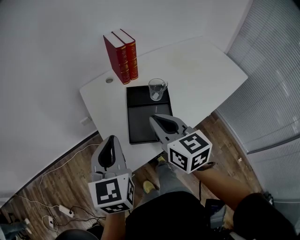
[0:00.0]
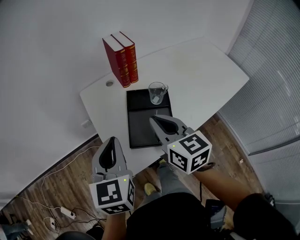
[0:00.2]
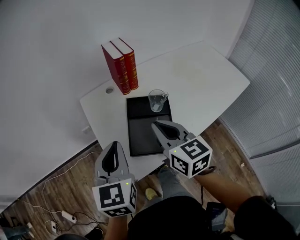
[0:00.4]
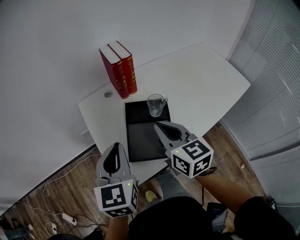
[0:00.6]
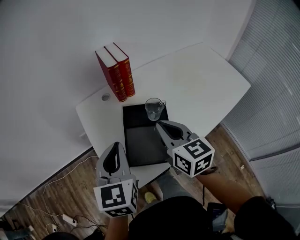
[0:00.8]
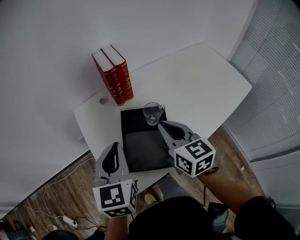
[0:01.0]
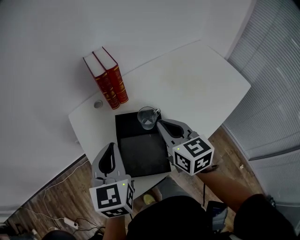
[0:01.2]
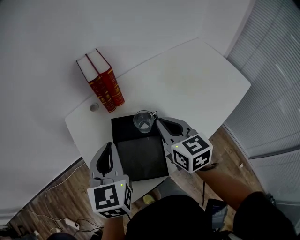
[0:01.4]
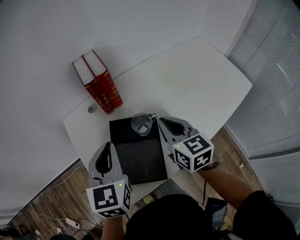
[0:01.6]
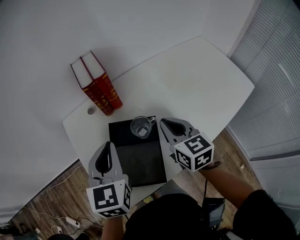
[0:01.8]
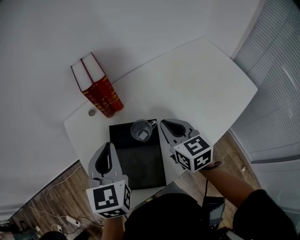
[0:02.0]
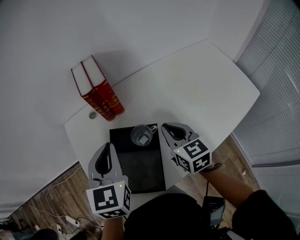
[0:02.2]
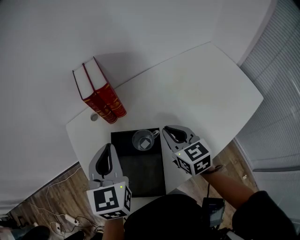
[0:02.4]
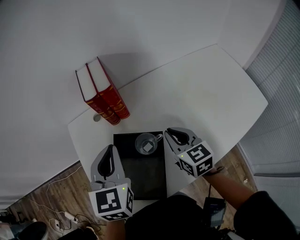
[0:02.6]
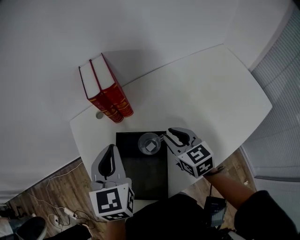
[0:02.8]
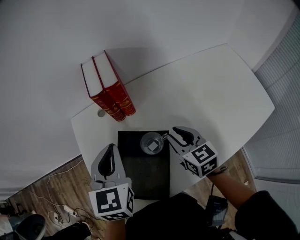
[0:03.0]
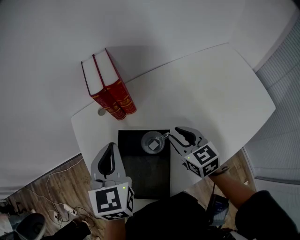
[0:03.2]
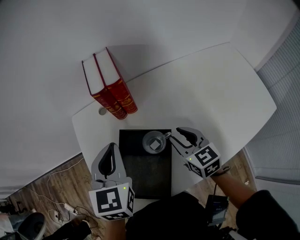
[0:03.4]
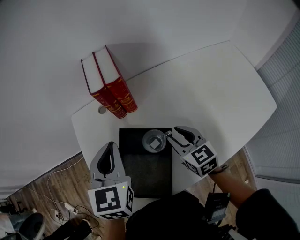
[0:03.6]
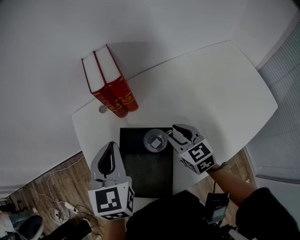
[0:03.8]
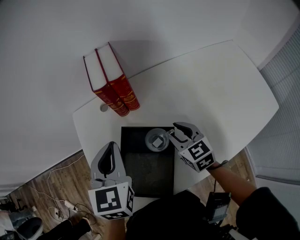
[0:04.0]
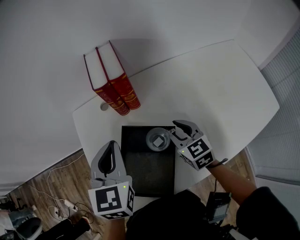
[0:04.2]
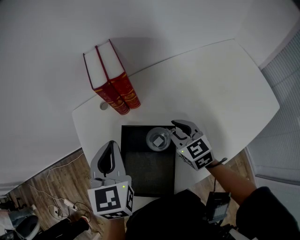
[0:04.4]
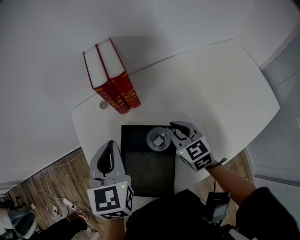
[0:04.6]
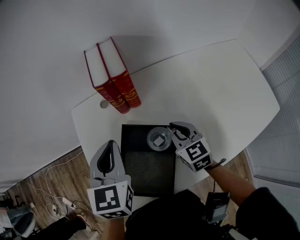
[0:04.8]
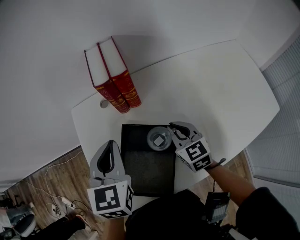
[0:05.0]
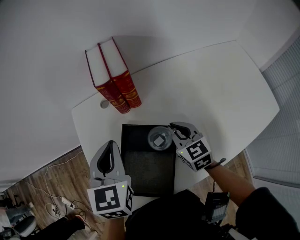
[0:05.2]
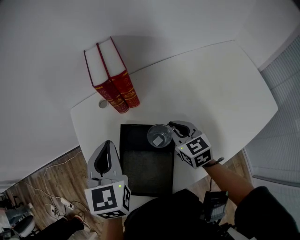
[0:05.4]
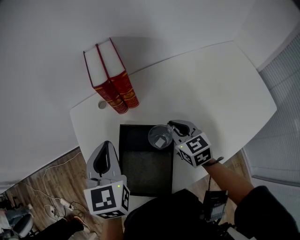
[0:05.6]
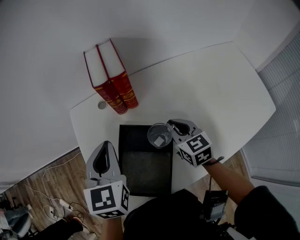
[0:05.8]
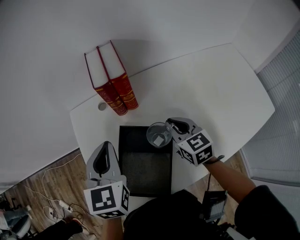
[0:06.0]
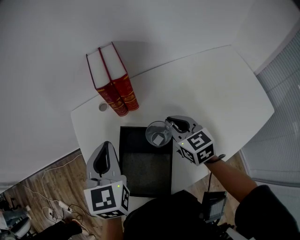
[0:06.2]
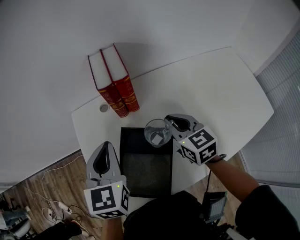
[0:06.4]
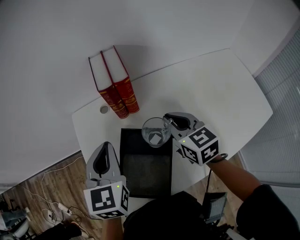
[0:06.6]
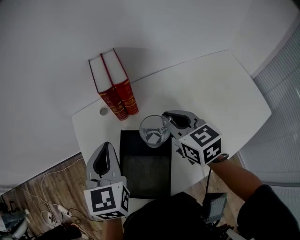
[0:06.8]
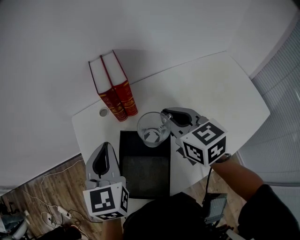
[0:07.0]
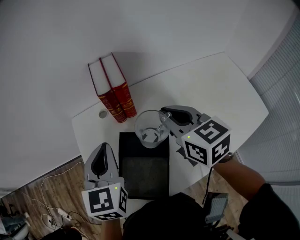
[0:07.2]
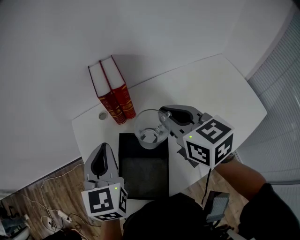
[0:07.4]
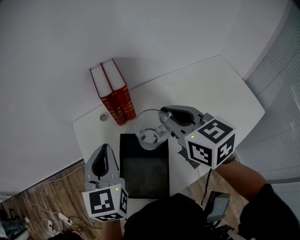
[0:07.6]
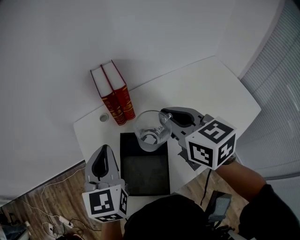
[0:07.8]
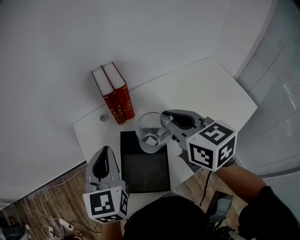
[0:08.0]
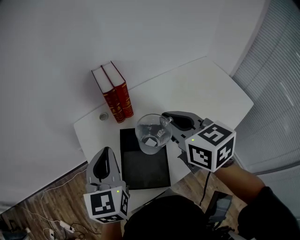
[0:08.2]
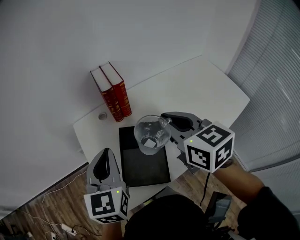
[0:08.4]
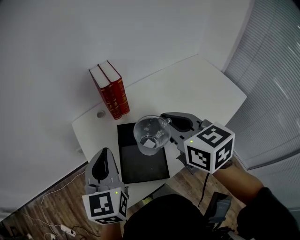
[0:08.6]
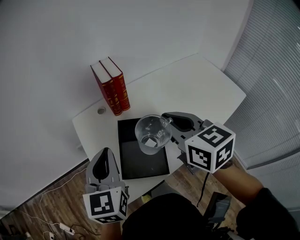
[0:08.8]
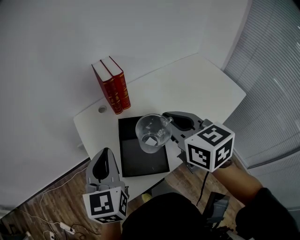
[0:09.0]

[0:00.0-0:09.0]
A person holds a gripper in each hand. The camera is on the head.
0:00.0 to 0:01.6: The left gripper moves forward and to the right, about 20 cm; the right gripper heads to the right and forward, covering approximately 20 cm.
0:01.6 to 0:03.0: The right gripper travels downward and forward by about 10 cm, and opens its fingers. Meanwhile the left gripper travels forward by approximately 5 cm.
0:03.0 to 0:04.4: The grippers make only small movements.
0:04.4 to 0:06.0: The right gripper closes up.
0:06.0 to 0:07.6: The left gripper travels upward by some 5 cm, while the right gripper travels upward by roughly 20 cm.
0:07.6 to 0:09.0: The grippers both shift backward by roughly 15 cm.

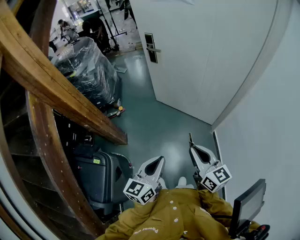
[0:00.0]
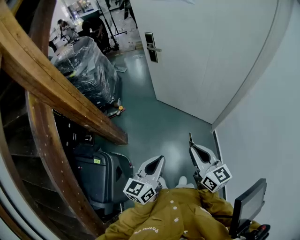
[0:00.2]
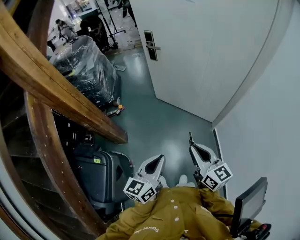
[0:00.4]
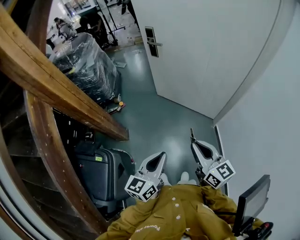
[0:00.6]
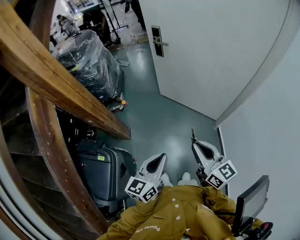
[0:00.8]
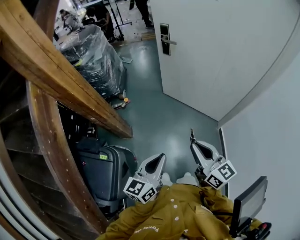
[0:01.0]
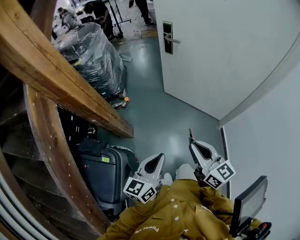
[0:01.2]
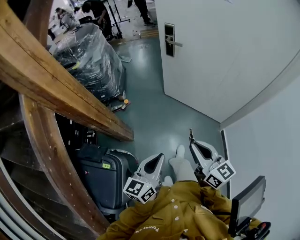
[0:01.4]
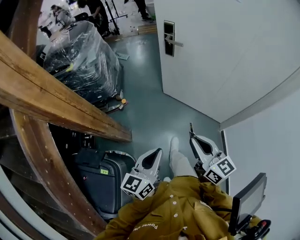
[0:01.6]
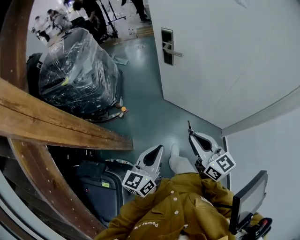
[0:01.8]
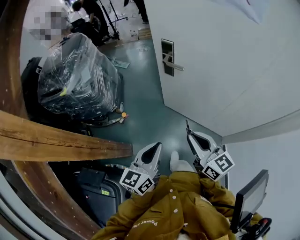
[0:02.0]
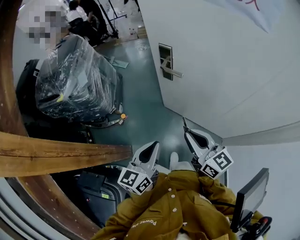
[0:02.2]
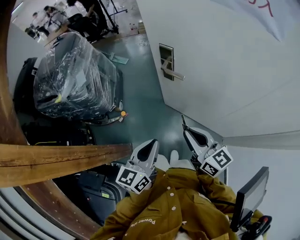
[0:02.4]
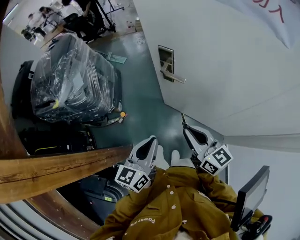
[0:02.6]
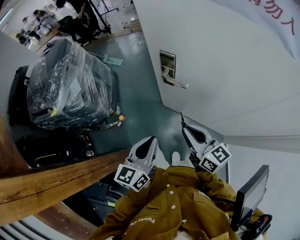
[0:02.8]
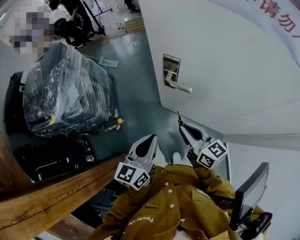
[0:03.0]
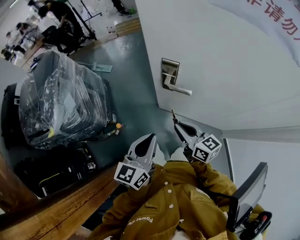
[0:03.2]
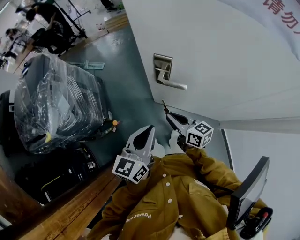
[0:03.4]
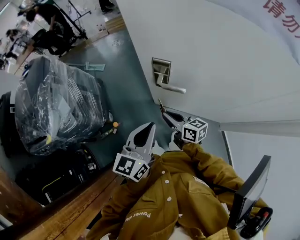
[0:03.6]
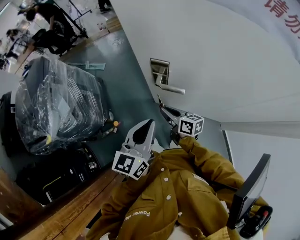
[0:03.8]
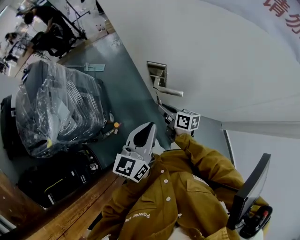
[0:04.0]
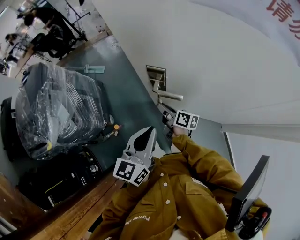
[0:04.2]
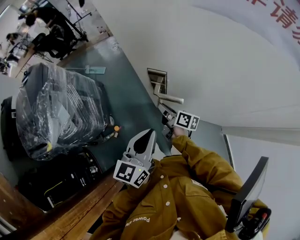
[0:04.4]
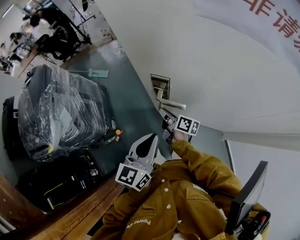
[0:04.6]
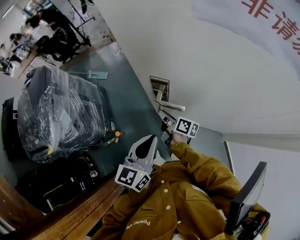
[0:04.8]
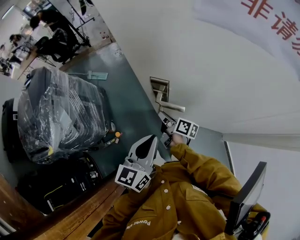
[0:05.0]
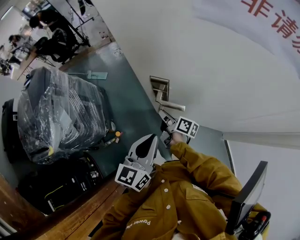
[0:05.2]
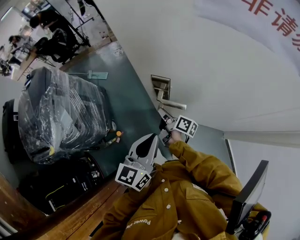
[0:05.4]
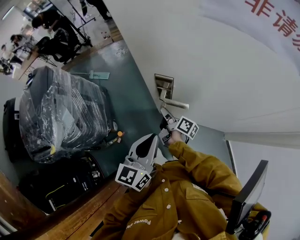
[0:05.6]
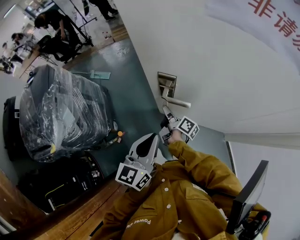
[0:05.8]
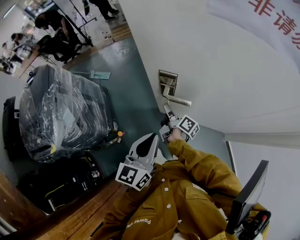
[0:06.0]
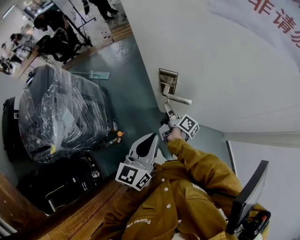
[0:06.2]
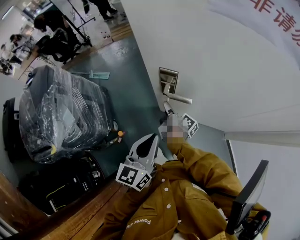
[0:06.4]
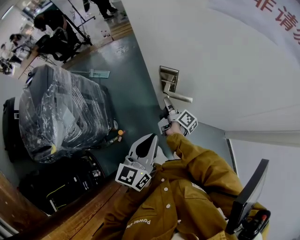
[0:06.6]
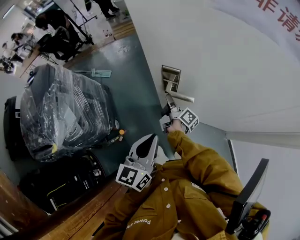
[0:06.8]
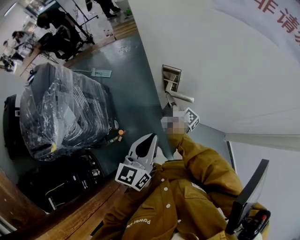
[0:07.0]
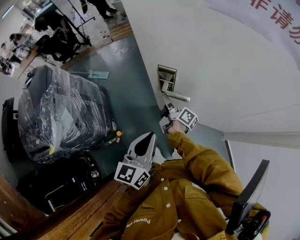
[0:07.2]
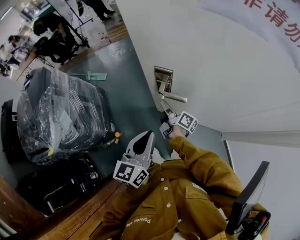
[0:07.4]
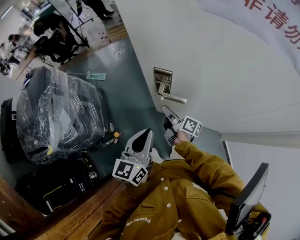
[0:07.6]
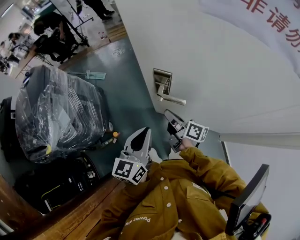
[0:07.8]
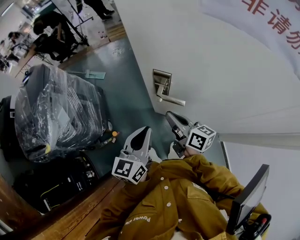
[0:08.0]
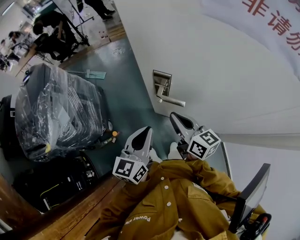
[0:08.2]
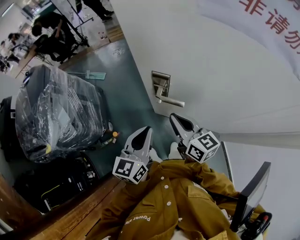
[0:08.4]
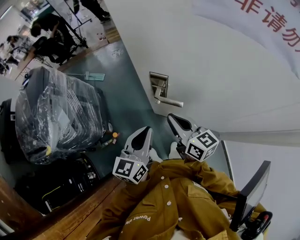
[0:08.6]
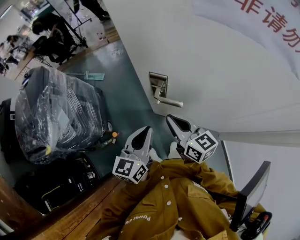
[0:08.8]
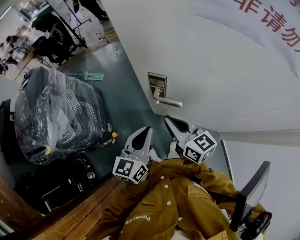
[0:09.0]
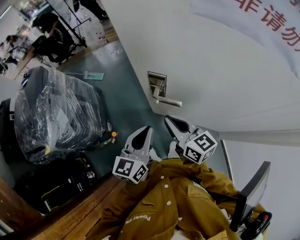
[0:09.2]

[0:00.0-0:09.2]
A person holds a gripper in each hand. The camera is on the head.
0:00.0 to 0:01.6: The two grippers go roughly 20 cm forward and to the left.
0:01.6 to 0:03.0: The pair of grippers is taken forward, some 40 cm.
0:03.0 to 0:04.6: The left gripper travels forward and to the right by about 15 cm. The right gripper travels forward and downward by approximately 25 cm, and twists about 40 degrees clockwise, seen from behind.
0:04.6 to 0:06.2: The right gripper rotates approximately 20 degrees.
0:06.2 to 0:07.6: The grippers stay close to where they were, moving slightly.
0:07.6 to 0:09.2: The right gripper travels upward and backward by roughly 15 cm, rotates around the line of its fingers by about 50 degrees, counterclockwise from behind, and closes up.

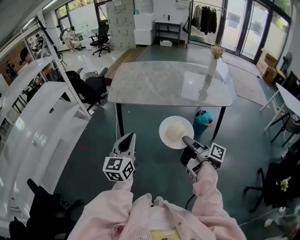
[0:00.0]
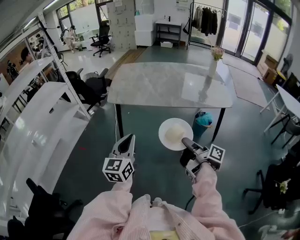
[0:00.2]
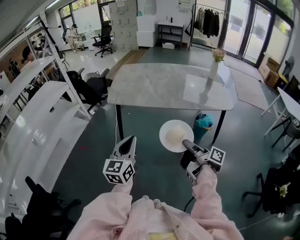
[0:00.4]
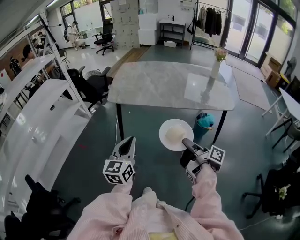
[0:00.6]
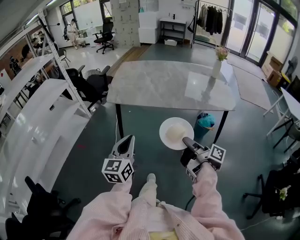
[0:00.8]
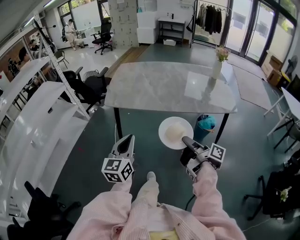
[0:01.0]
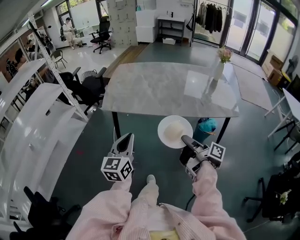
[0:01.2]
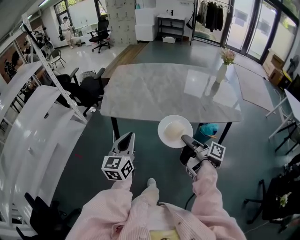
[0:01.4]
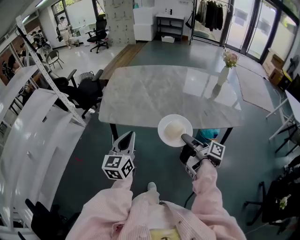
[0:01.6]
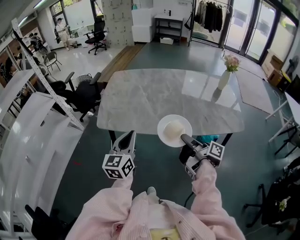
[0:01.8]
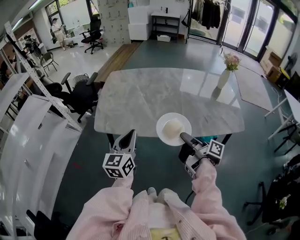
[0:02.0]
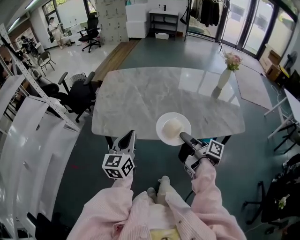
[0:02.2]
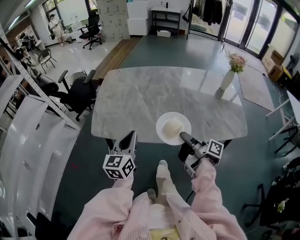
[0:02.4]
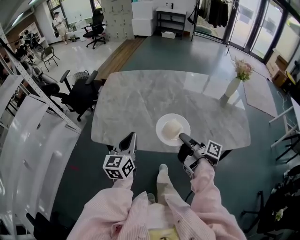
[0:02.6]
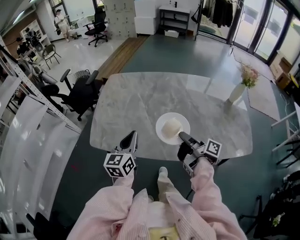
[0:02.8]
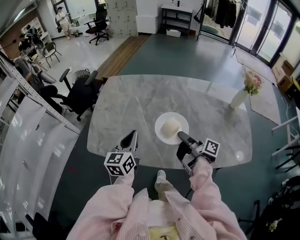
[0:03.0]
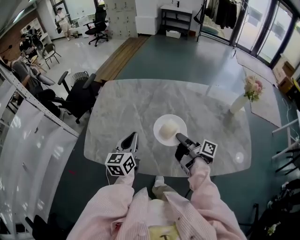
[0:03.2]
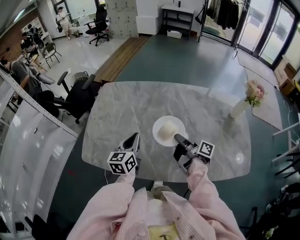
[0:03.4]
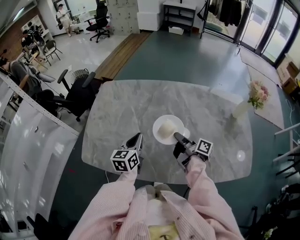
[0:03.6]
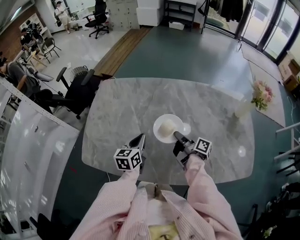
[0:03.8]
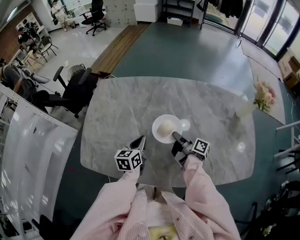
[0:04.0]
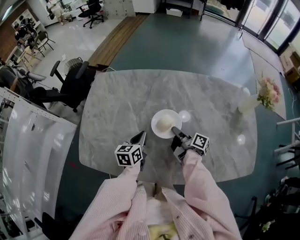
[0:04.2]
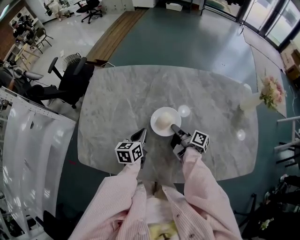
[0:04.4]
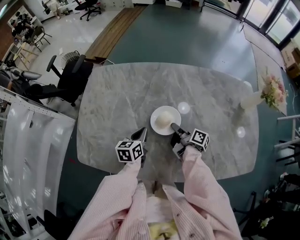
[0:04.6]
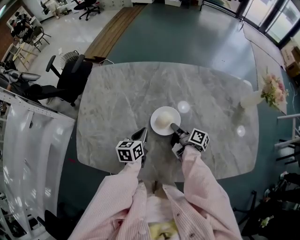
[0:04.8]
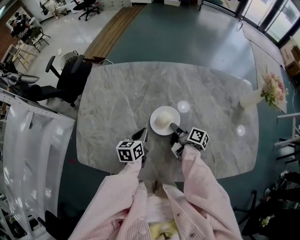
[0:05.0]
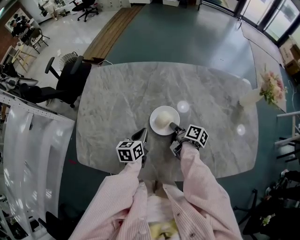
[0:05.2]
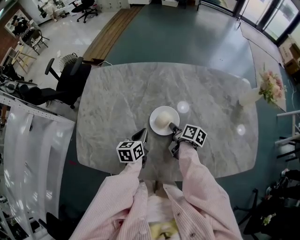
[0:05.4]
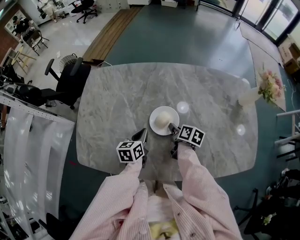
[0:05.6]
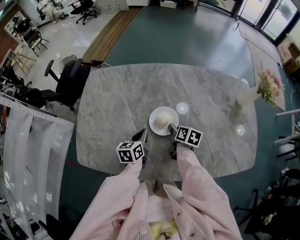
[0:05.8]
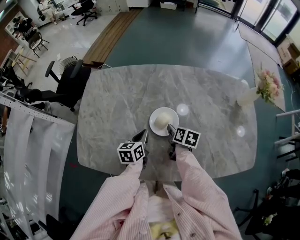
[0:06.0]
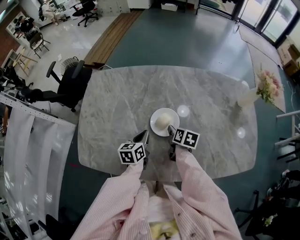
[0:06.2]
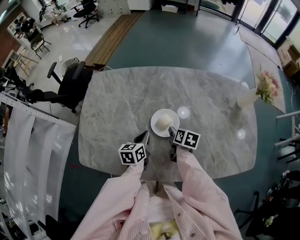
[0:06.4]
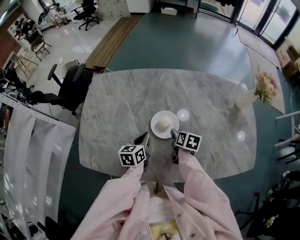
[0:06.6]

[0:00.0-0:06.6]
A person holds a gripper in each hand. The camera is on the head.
0:00.0 to 0:01.6: Both grippers travel together forward, about 25 cm.
0:01.6 to 0:03.2: Both grippers move forward, approximately 35 cm.
0:03.2 to 0:05.0: The grippers both shift downward and forward by about 20 cm. The left gripper rotates some 30 degrees. Meanwhile the right gripper rotates some 20 degrees.
0:05.0 to 0:06.6: The right gripper turns by some 50 degrees, and opens its fingers.
